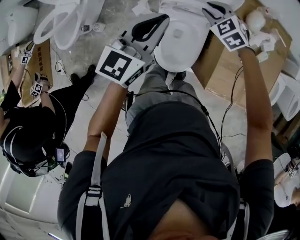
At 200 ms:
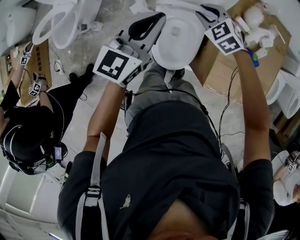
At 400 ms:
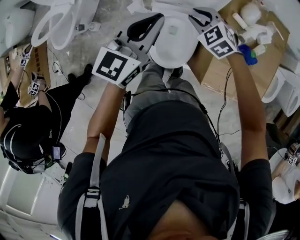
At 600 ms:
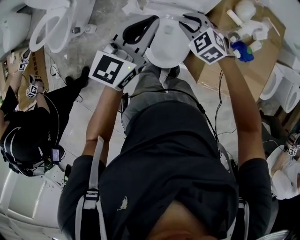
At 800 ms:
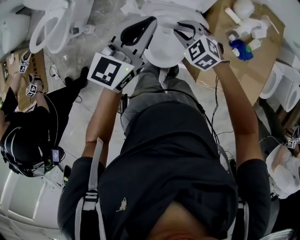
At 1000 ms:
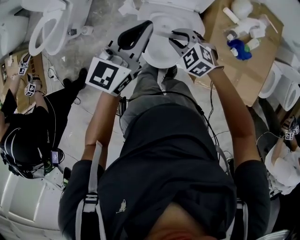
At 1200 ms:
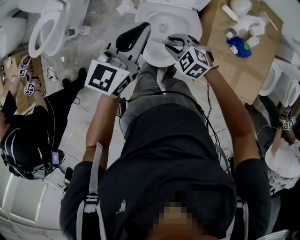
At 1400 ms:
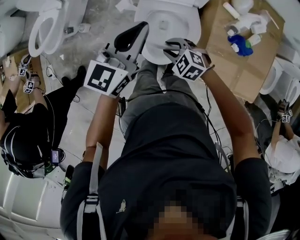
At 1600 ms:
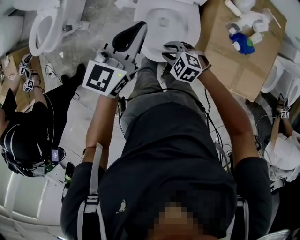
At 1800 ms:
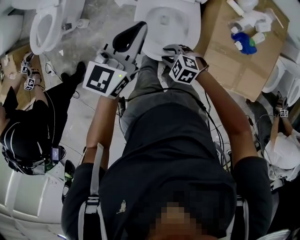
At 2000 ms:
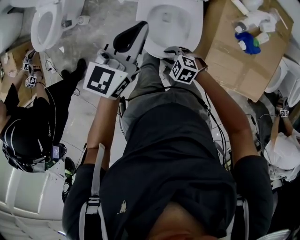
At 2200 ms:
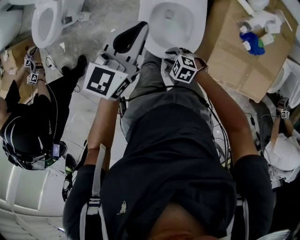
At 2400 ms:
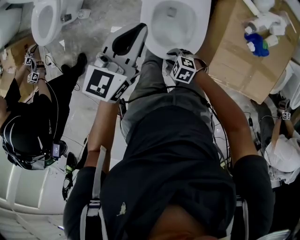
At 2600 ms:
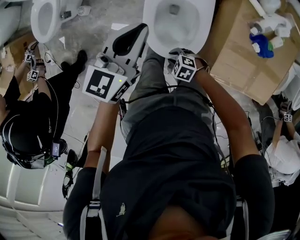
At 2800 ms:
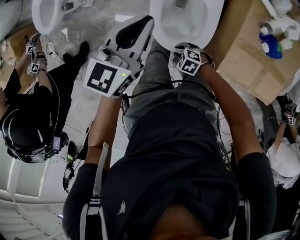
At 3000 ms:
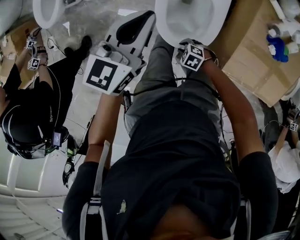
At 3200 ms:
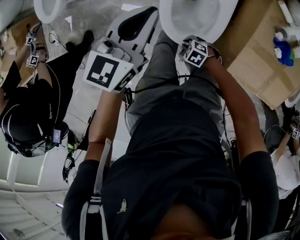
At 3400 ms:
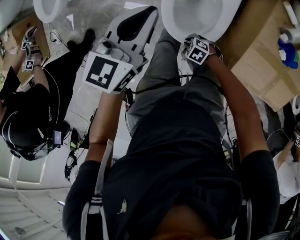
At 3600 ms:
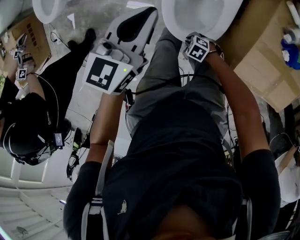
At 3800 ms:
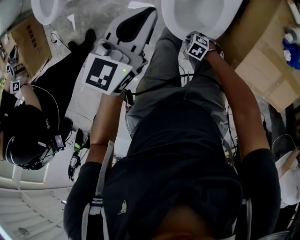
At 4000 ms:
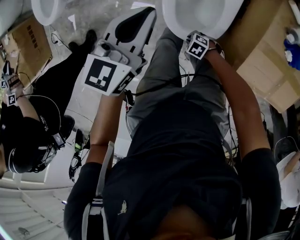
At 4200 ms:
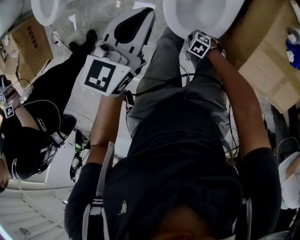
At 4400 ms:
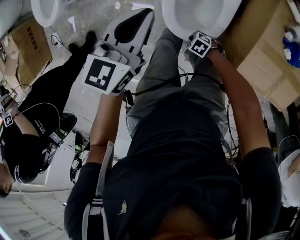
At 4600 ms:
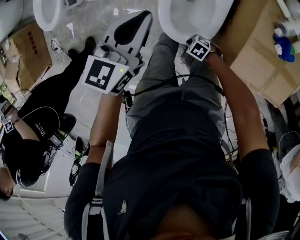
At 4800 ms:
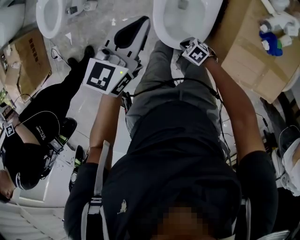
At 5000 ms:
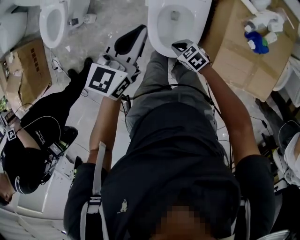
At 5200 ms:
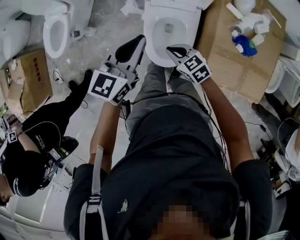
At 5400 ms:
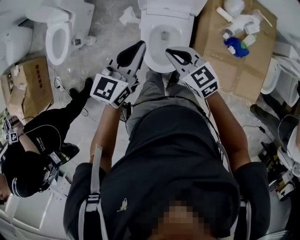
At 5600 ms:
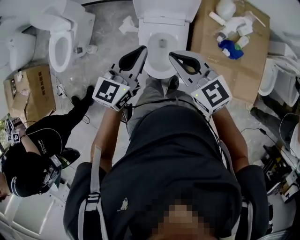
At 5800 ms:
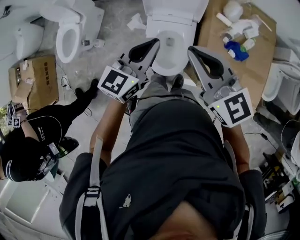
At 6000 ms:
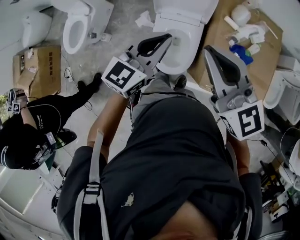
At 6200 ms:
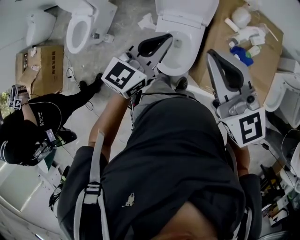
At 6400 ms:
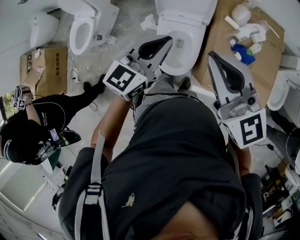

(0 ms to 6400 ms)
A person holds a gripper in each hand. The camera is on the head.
0 ms - 1600 ms: The right gripper travels backward and downward by approximately 30 cm, and changes its angle by some 30 degrees, while the left gripper is displaced backward and downward by some 10 cm.
1600 ms - 3200 ms: The left gripper goes some 15 cm downward; the right gripper shifts some 25 cm downward, and rotates approximately 20 degrees.
3200 ms - 4800 ms: The right gripper changes place by approximately 5 cm.
4800 ms - 6400 ms: The left gripper is displaced upward by some 20 cm, while the right gripper travels upward by some 70 cm, and tips its fingers upward by some 60 degrees.

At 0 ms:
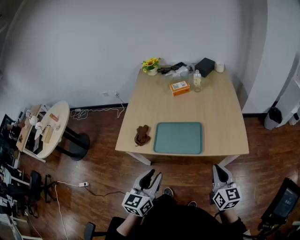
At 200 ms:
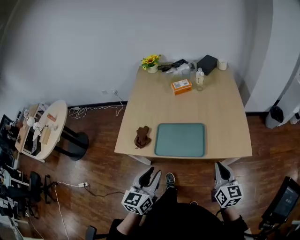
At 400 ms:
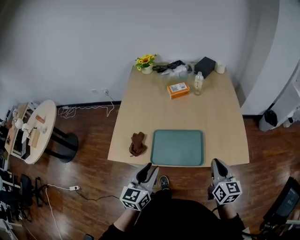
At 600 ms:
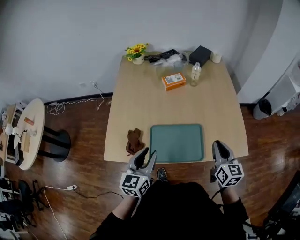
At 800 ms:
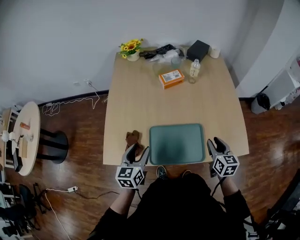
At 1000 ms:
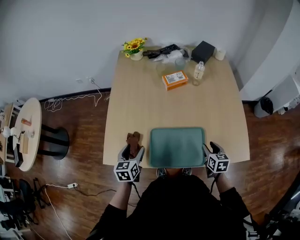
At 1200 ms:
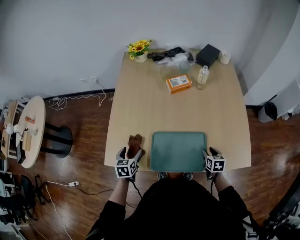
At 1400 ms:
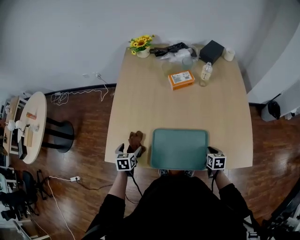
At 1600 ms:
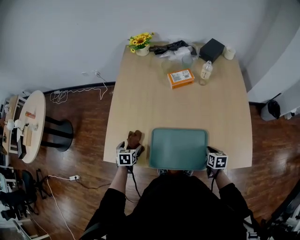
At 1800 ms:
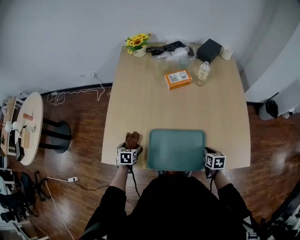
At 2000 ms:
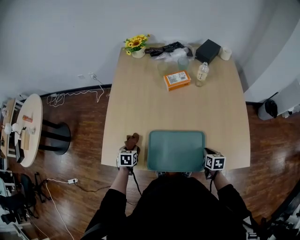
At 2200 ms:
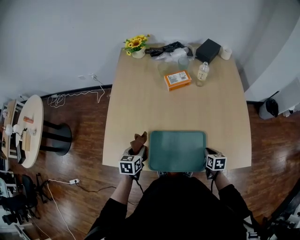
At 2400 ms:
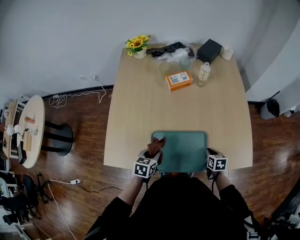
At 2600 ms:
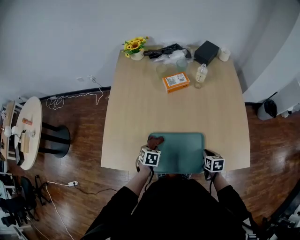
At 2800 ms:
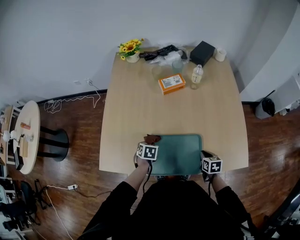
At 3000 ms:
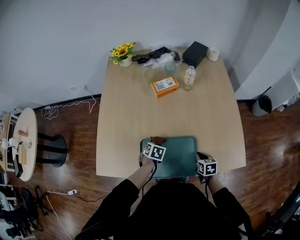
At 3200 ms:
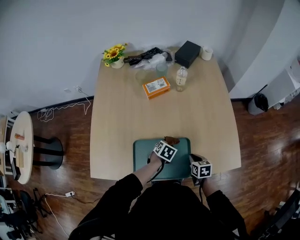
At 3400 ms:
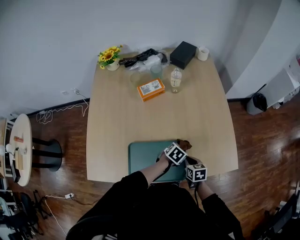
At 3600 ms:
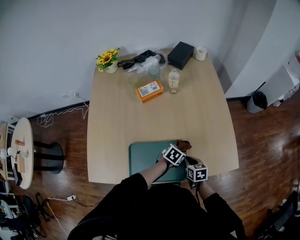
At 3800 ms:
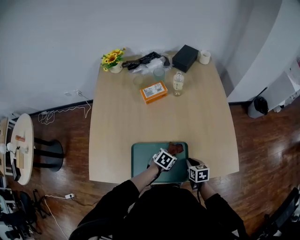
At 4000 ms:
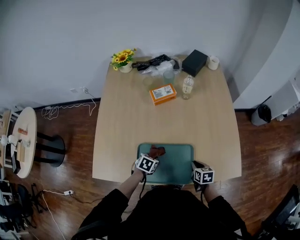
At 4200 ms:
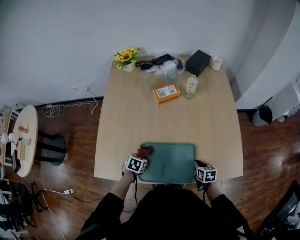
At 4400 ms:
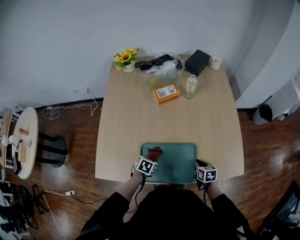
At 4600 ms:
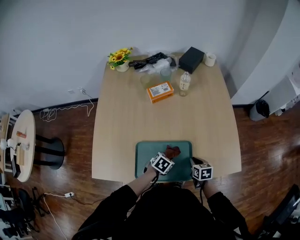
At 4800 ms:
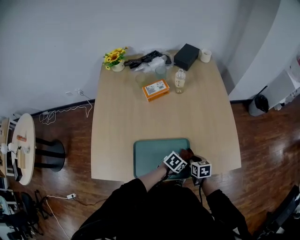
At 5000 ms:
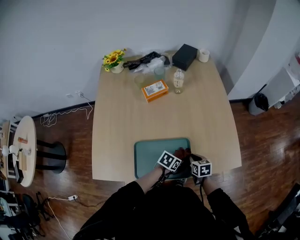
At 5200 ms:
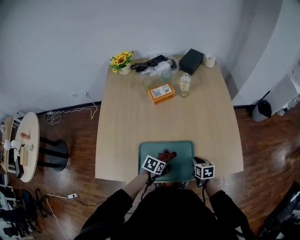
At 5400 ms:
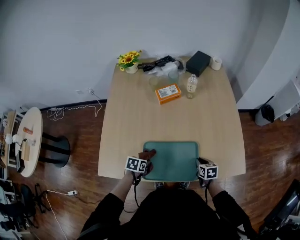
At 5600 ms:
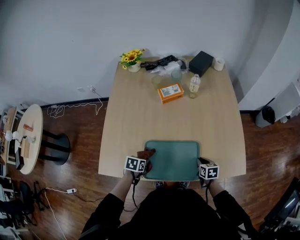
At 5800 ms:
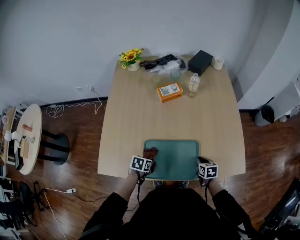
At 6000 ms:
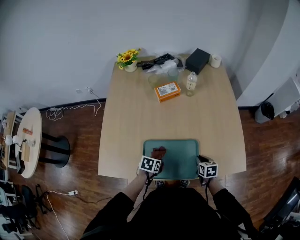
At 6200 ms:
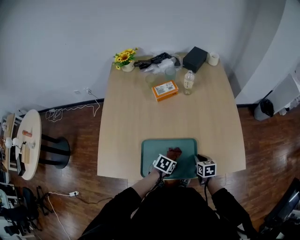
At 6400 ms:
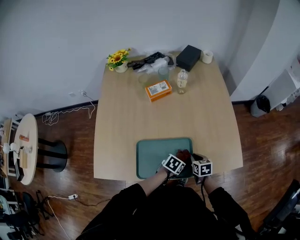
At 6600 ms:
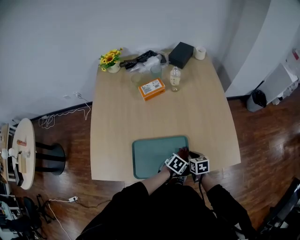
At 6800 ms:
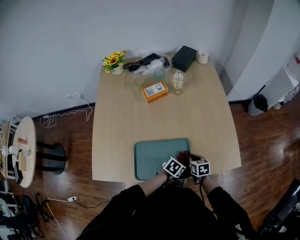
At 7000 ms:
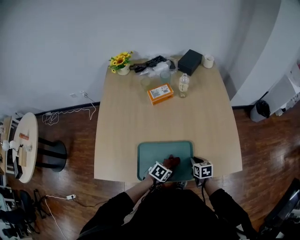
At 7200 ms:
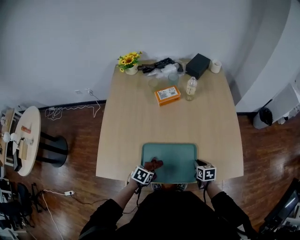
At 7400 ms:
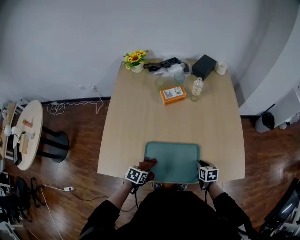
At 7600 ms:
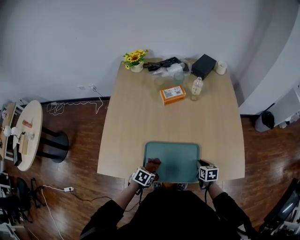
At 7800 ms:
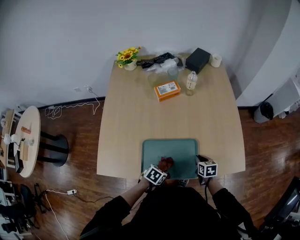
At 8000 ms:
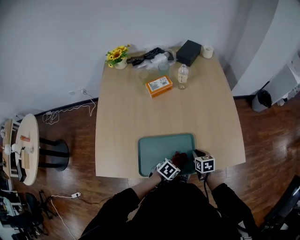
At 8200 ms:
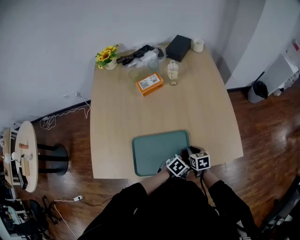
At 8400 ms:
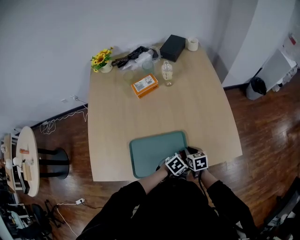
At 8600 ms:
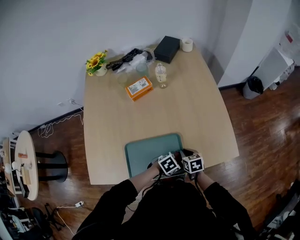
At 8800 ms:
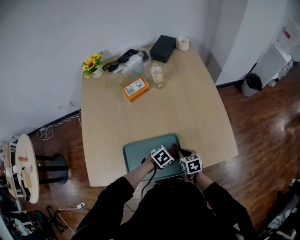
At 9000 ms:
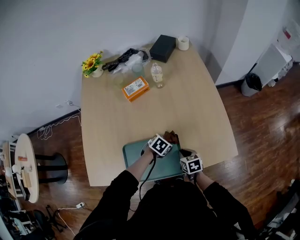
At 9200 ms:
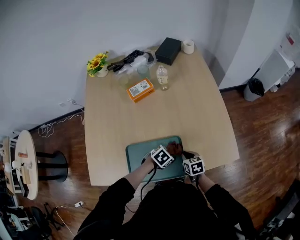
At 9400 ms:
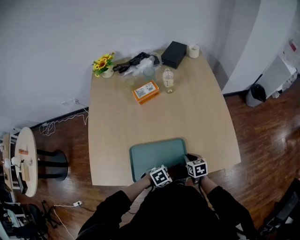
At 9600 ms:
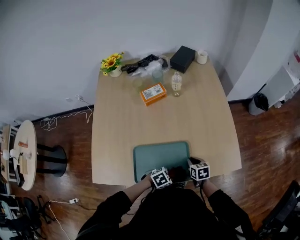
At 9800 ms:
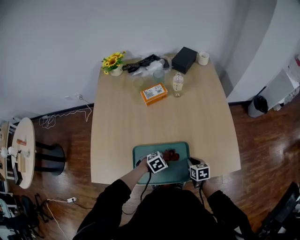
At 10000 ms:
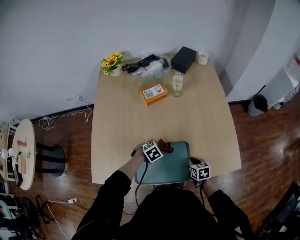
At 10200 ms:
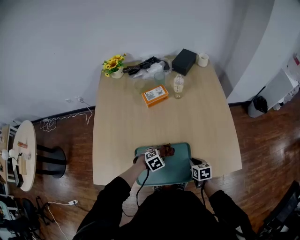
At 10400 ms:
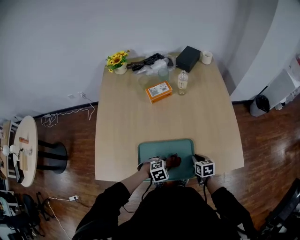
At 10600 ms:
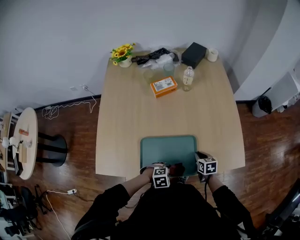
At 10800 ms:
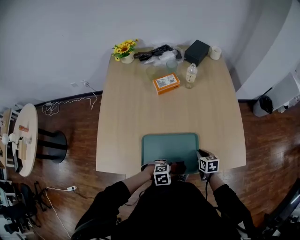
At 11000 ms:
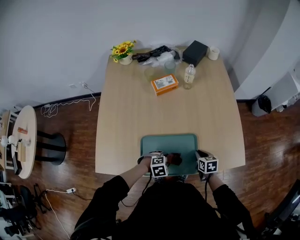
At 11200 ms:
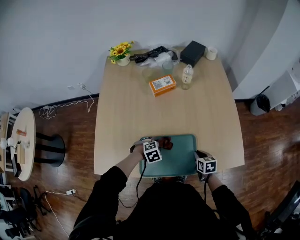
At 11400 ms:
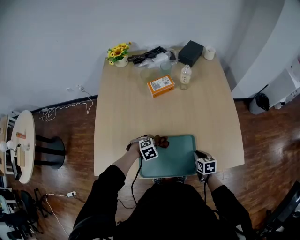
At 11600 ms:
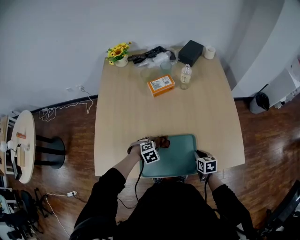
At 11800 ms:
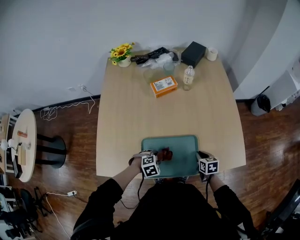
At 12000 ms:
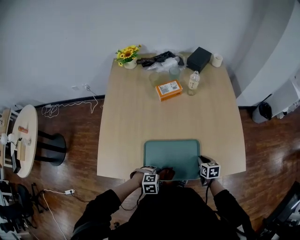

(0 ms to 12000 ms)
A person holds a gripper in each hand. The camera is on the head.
0 ms - 1600 ms: The right gripper is displaced downward and forward by roughly 40 cm, angles its fingers downward, by roughly 40 degrees, and opens, then closes once more. Meanwhile the left gripper shifts about 50 cm forward, downward and to the left, tips its fingers downward by approximately 40 degrees, and opens up.
1600 ms - 3000 ms: The left gripper heads to the right, covering some 20 cm, rotates roughly 20 degrees, and closes.
3000 ms - 4400 ms: The left gripper goes left and right, roughly 30 cm each way, reversing 2 times.
4400 ms - 6000 ms: The left gripper moves left and right over about 30 cm, changing direction 2 times.
6000 ms - 7600 ms: The left gripper is displaced backward by roughly 10 cm, and reaches about 20 cm to the right, then returns.
7600 ms - 9000 ms: The left gripper ends up roughly 25 cm from where it was, and rotates approximately 30 degrees.
9000 ms - 10400 ms: The left gripper ends up roughly 15 cm from where it was, and changes its angle by roughly 30 degrees.
10400 ms - 12000 ms: The left gripper swings forward and backward, some 15 cm each way, with 2 reversals.

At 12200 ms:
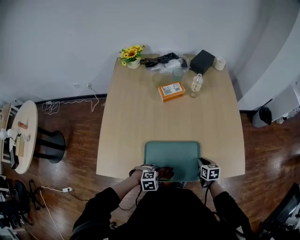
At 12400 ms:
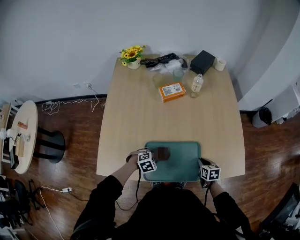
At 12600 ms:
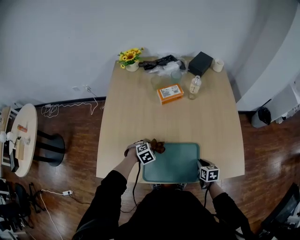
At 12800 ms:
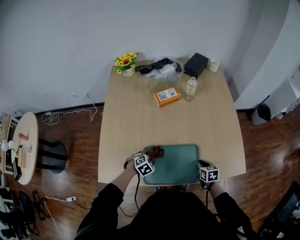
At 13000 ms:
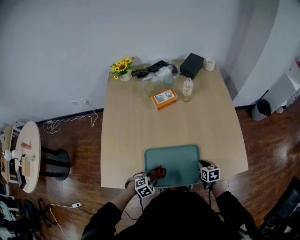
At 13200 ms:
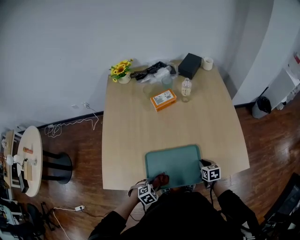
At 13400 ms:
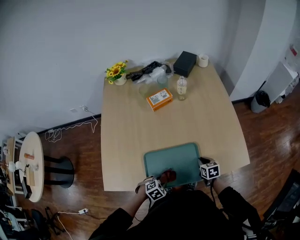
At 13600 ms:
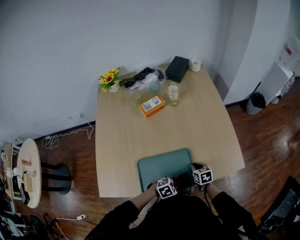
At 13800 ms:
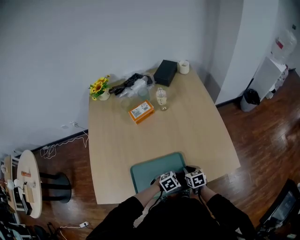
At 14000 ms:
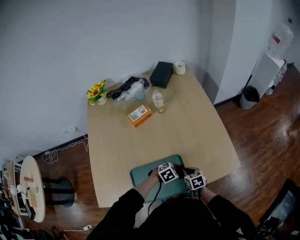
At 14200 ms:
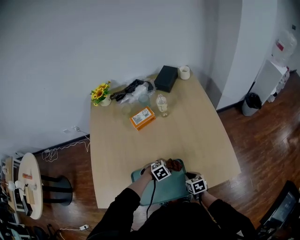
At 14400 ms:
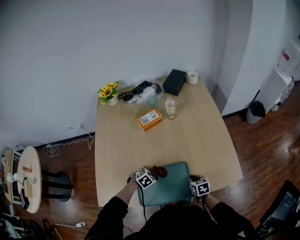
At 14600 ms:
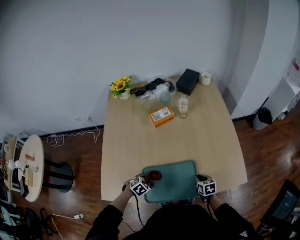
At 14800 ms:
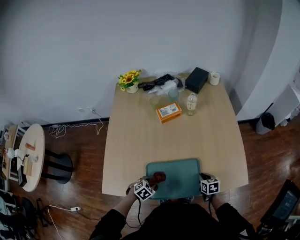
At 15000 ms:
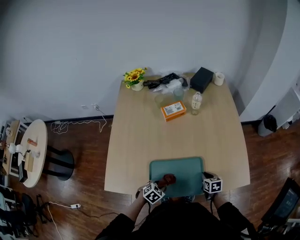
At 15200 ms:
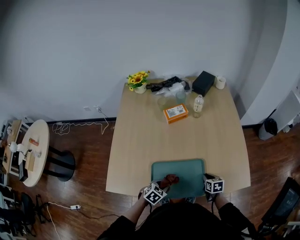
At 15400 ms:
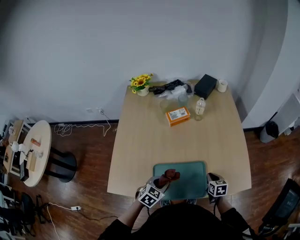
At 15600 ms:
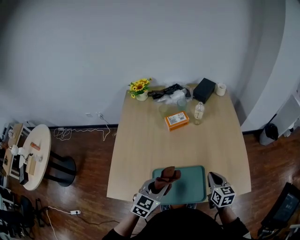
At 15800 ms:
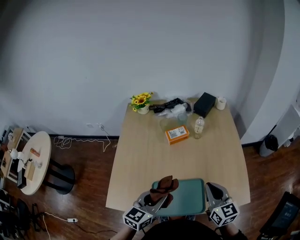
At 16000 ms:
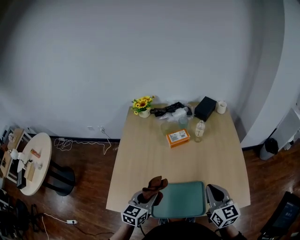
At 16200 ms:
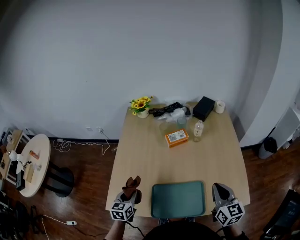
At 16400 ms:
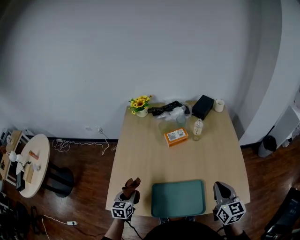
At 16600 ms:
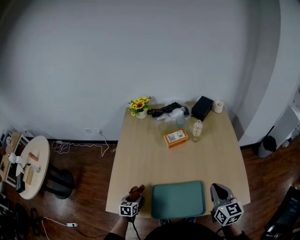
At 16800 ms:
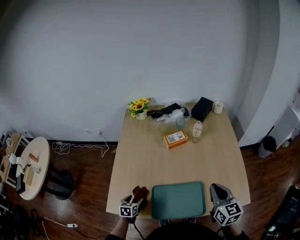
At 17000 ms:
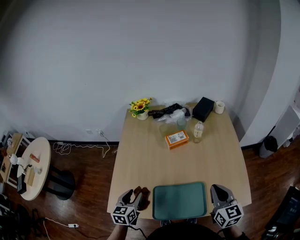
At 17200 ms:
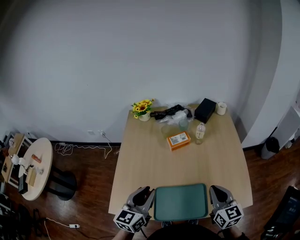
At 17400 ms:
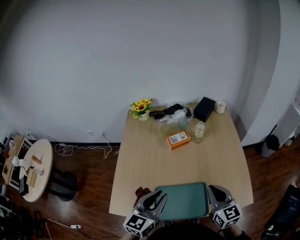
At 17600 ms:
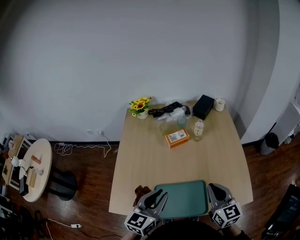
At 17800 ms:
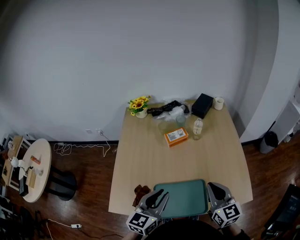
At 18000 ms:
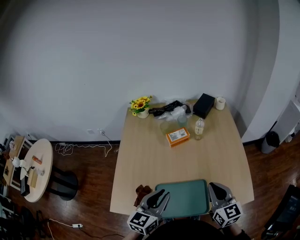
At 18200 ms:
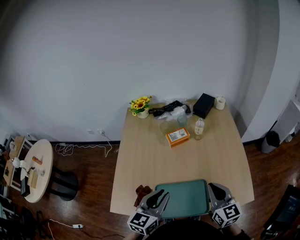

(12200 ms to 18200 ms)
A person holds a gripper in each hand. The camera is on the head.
12200 ms - 13800 ms: The left gripper changes place by some 20 cm.
13800 ms - 15200 ms: The left gripper moves to the left, roughly 20 cm, and rotates some 40 degrees.
15200 ms - 16600 ms: The right gripper moves upward, approximately 30 cm, and tilts its fingers about 30 degrees upward. Meanwhile the left gripper is displaced to the left by about 20 cm, reaches about 25 cm upward, then returns, and swivels roughly 40 degrees.
16600 ms - 18200 ms: The left gripper heads upward and to the right, covering approximately 35 cm, tips its fingers upward by approximately 30 degrees, and opens and closes again.
